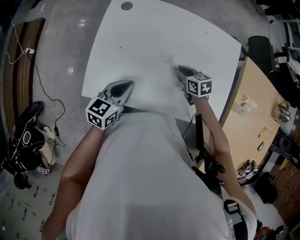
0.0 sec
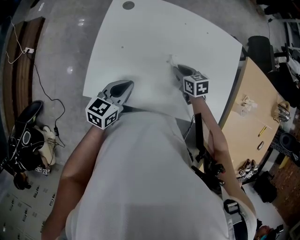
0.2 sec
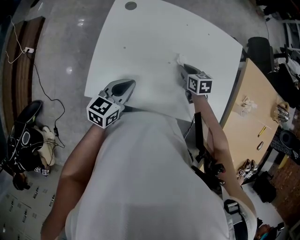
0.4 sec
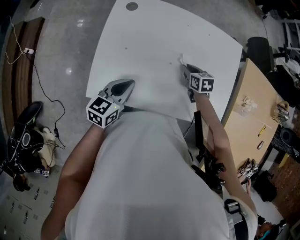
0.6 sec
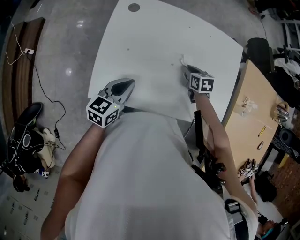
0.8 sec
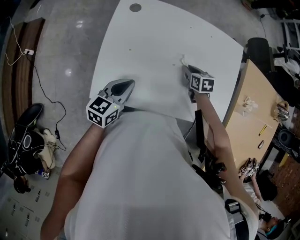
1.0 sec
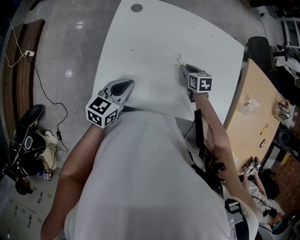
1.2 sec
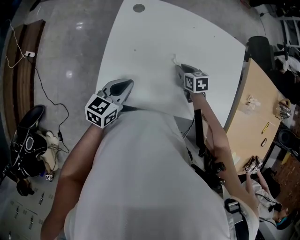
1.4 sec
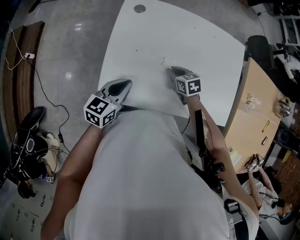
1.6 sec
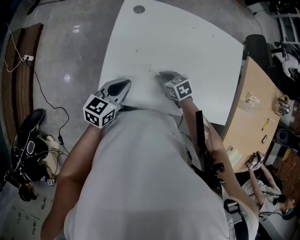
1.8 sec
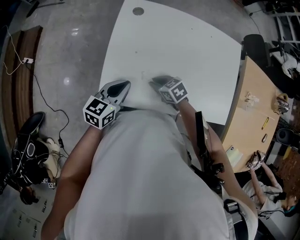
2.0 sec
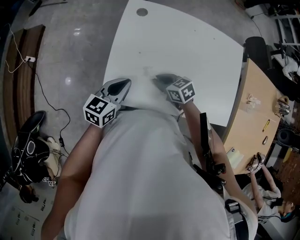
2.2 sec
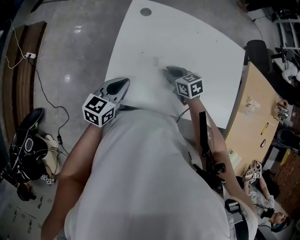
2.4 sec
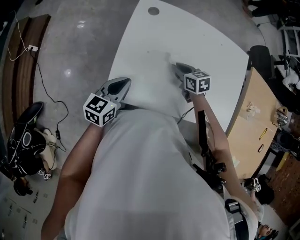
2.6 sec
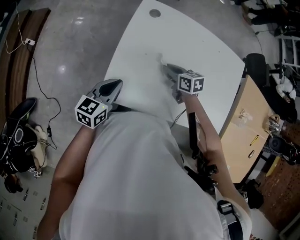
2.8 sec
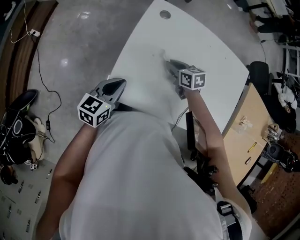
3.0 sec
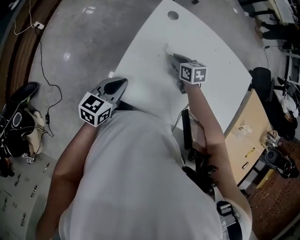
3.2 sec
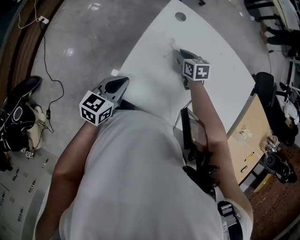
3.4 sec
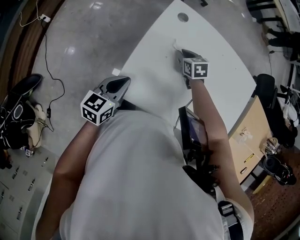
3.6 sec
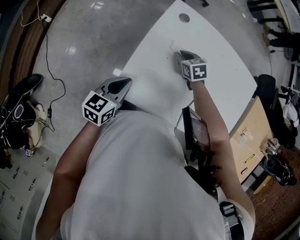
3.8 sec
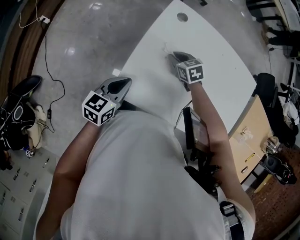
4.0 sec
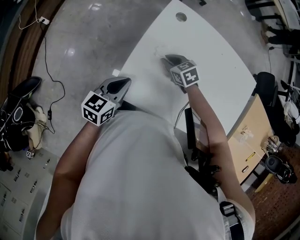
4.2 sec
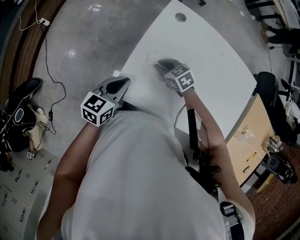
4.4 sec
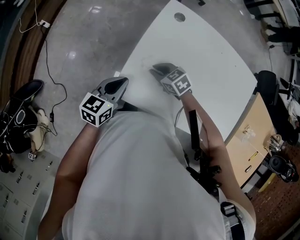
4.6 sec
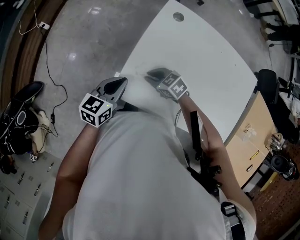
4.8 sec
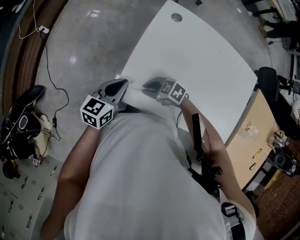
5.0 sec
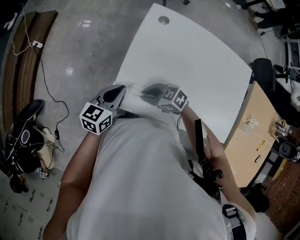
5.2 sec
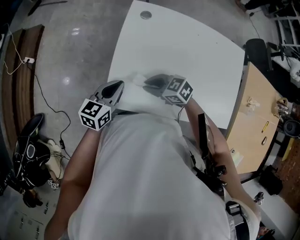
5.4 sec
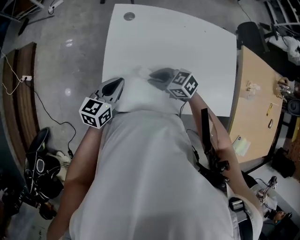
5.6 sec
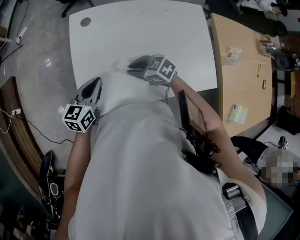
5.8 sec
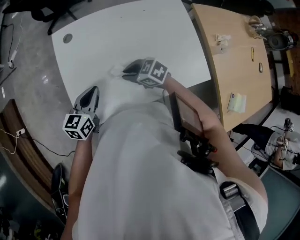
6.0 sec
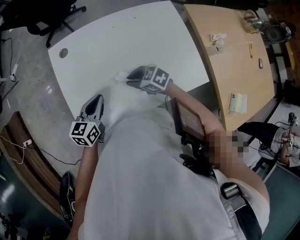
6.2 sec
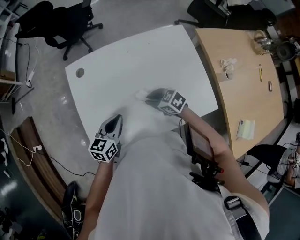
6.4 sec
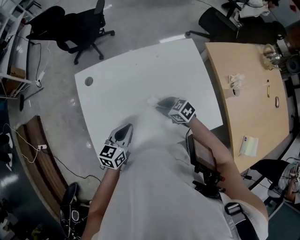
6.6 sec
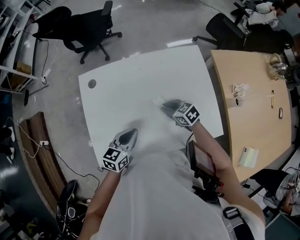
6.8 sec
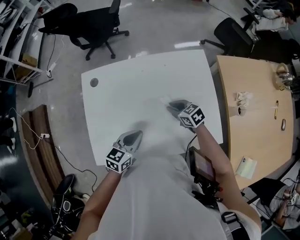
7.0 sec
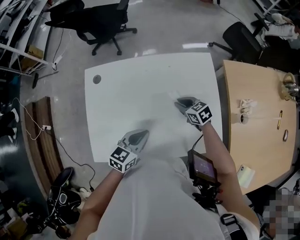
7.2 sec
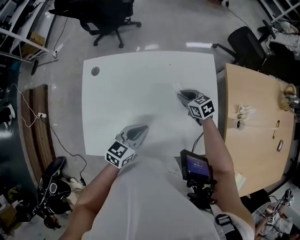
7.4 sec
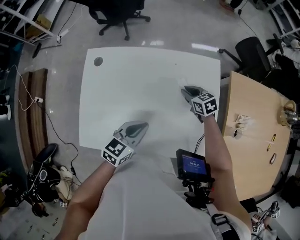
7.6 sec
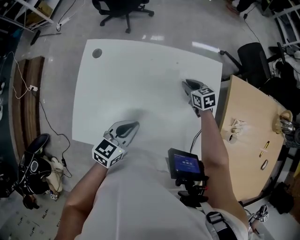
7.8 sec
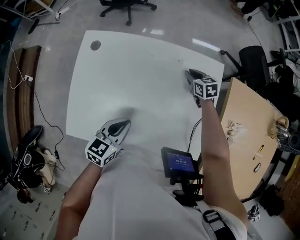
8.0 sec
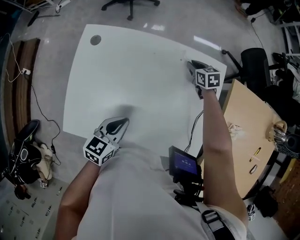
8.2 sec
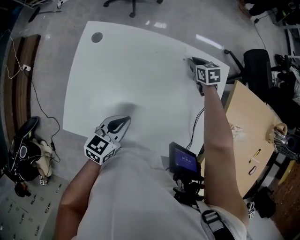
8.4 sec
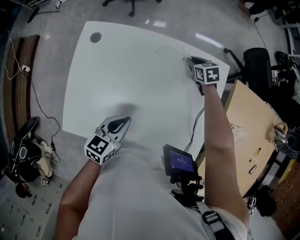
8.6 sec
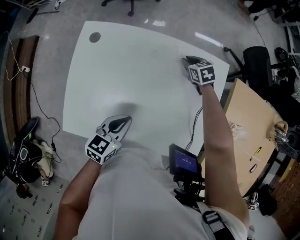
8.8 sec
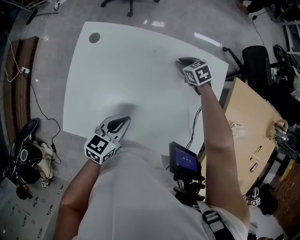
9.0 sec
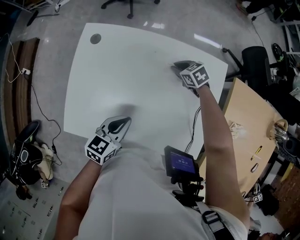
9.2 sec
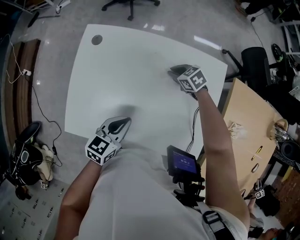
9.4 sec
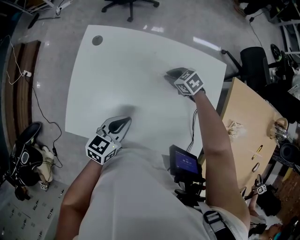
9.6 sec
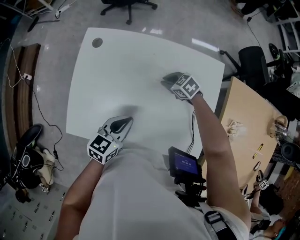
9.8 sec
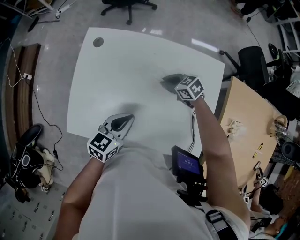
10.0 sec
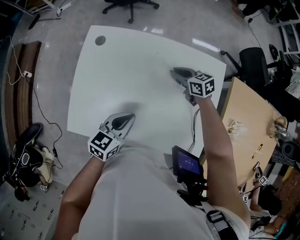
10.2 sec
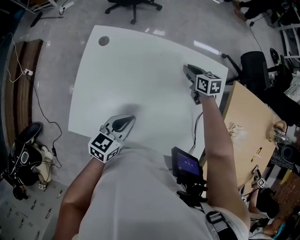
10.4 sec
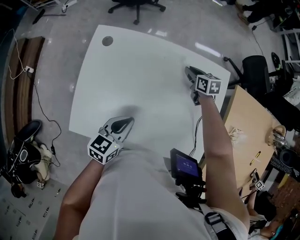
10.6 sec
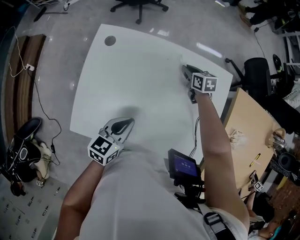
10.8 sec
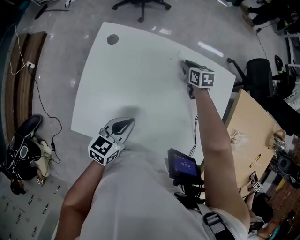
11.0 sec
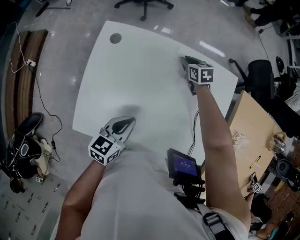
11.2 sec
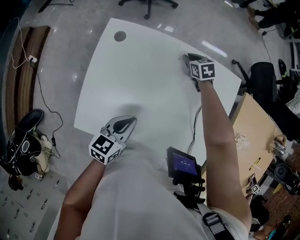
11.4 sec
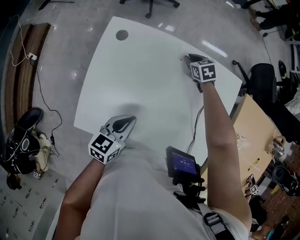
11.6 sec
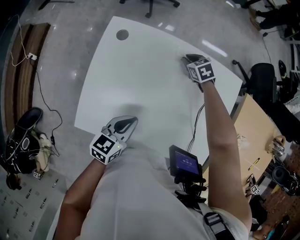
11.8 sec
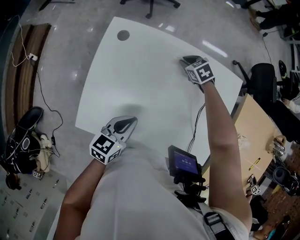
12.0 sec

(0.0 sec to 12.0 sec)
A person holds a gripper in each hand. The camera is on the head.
0.0 sec - 1.6 sec: Both grippers move to the left, about 10 cm.
1.6 sec - 3.0 sec: The right gripper goes about 10 cm to the left and forward. Meanwhile the left gripper moves to the left, roughly 10 cm.
3.0 sec - 4.4 sec: The right gripper shifts roughly 10 cm to the left, and turns by roughly 30 degrees.
4.4 sec - 6.0 sec: The left gripper changes place by roughly 15 cm, and swivels roughly 30 degrees; the right gripper ends up some 15 cm from where it was.
6.0 sec - 7.6 sec: The left gripper travels to the right by some 25 cm; the right gripper travels to the right and forward by some 35 cm.
7.6 sec - 9.0 sec: The left gripper heads to the left, covering about 5 cm. The right gripper travels forward and to the left by some 10 cm.
9.0 sec - 10.4 sec: The right gripper travels to the left and back again, roughly 10 cm each way, and turns by about 30 degrees.
10.4 sec - 12.0 sec: The right gripper travels to the left by roughly 10 cm, and swivels approximately 40 degrees. Meanwhile the left gripper travels to the left by roughly 5 cm.

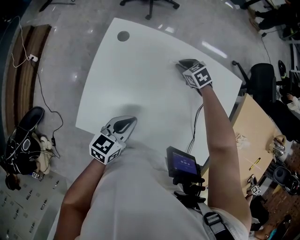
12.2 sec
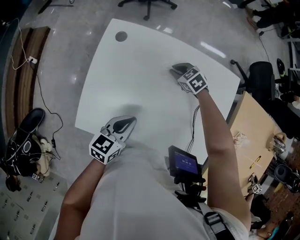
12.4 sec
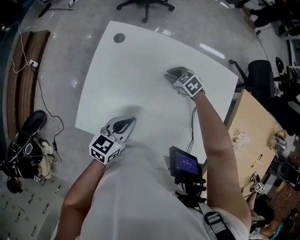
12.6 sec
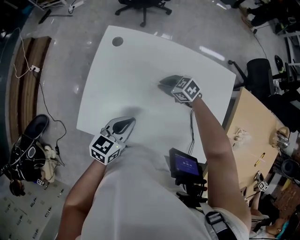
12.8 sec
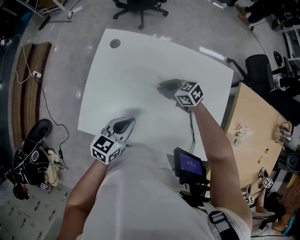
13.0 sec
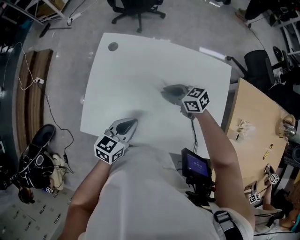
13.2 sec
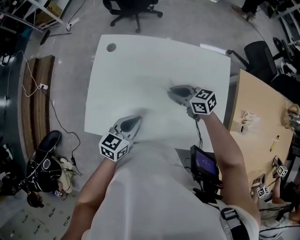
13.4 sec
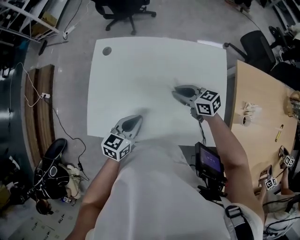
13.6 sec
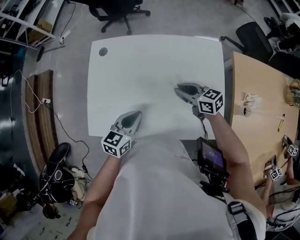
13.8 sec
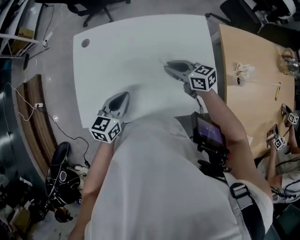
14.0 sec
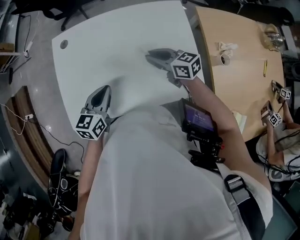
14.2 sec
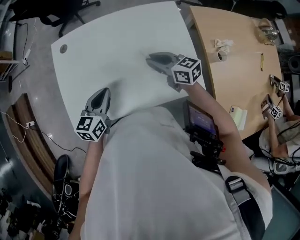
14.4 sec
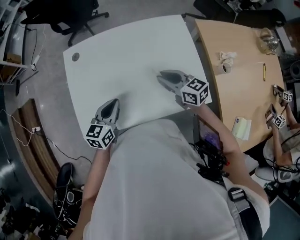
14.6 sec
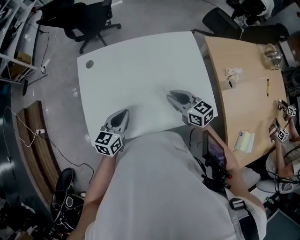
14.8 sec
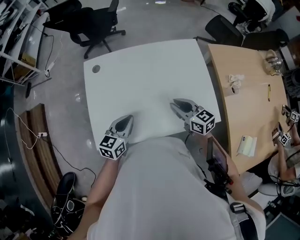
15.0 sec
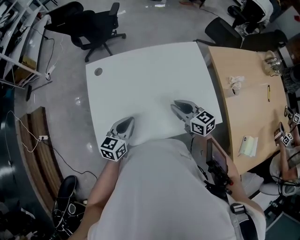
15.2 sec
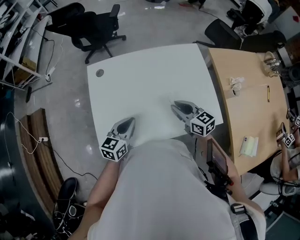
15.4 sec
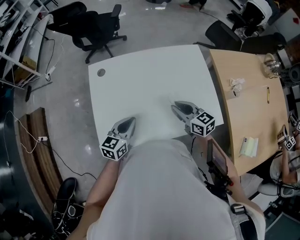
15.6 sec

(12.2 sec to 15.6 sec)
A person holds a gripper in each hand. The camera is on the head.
12.2 sec - 13.8 sec: The left gripper moves about 5 cm, while the right gripper shifts by some 25 cm, and tips its fingers upward by approximately 40 degrees.
13.8 sec - 15.6 sec: The left gripper is displaced to the left by roughly 10 cm. Meanwhile the right gripper travels backward by some 10 cm, and changes its angle by approximately 30 degrees.

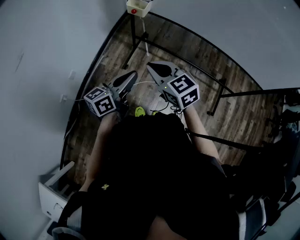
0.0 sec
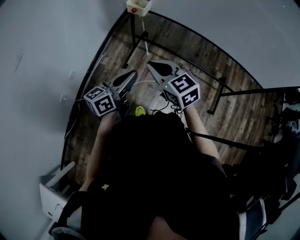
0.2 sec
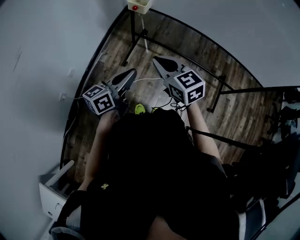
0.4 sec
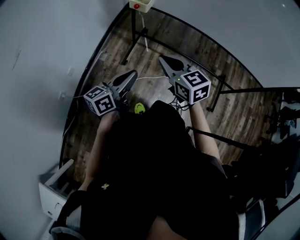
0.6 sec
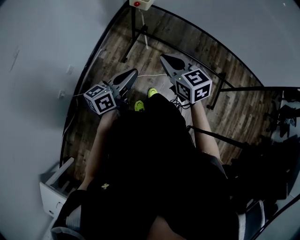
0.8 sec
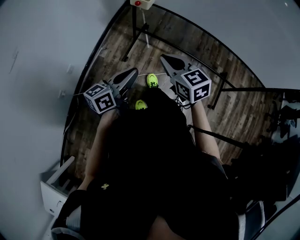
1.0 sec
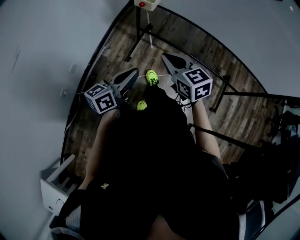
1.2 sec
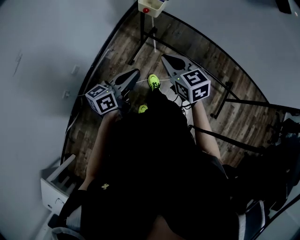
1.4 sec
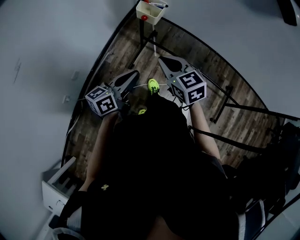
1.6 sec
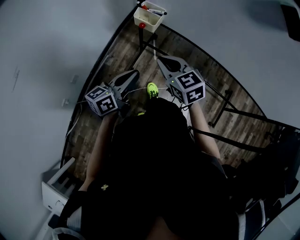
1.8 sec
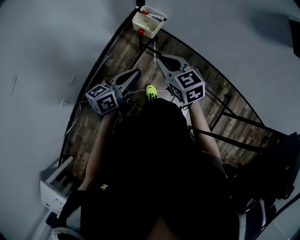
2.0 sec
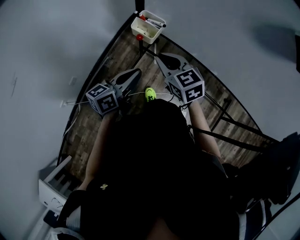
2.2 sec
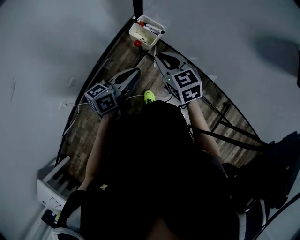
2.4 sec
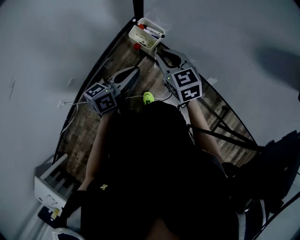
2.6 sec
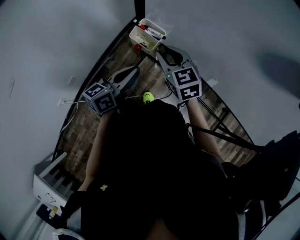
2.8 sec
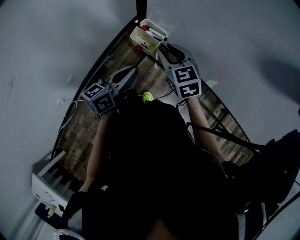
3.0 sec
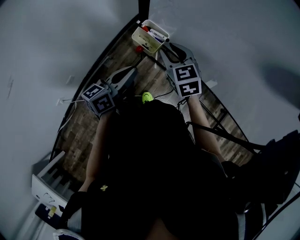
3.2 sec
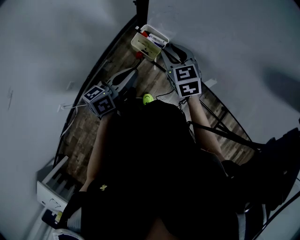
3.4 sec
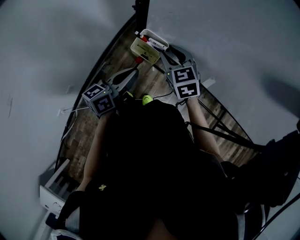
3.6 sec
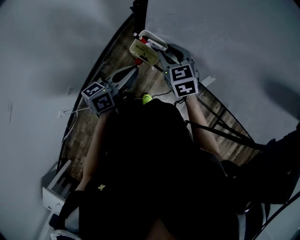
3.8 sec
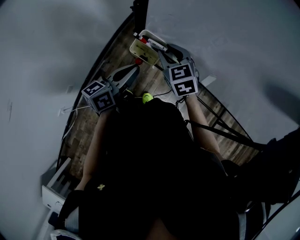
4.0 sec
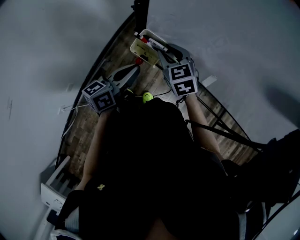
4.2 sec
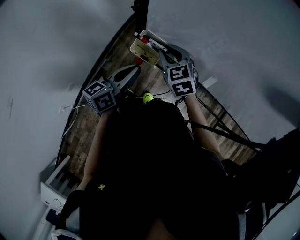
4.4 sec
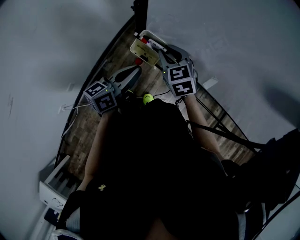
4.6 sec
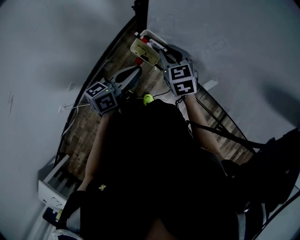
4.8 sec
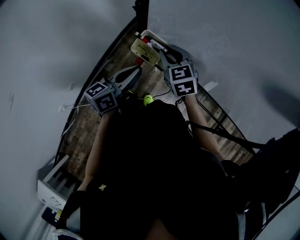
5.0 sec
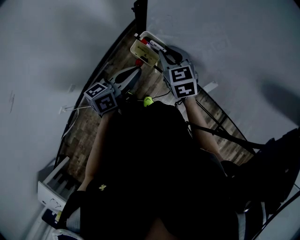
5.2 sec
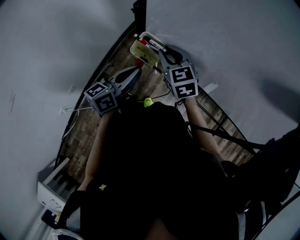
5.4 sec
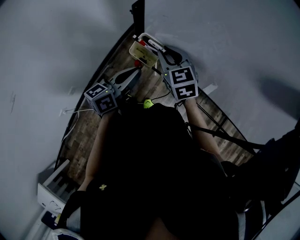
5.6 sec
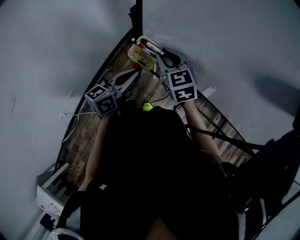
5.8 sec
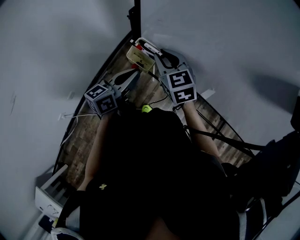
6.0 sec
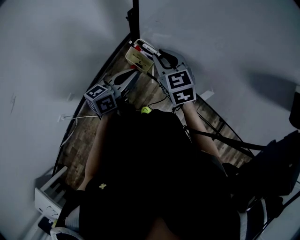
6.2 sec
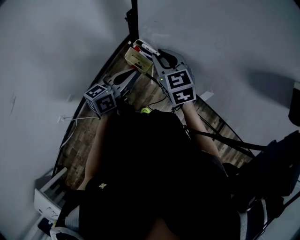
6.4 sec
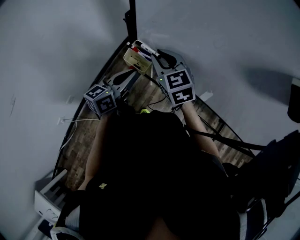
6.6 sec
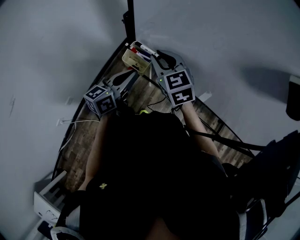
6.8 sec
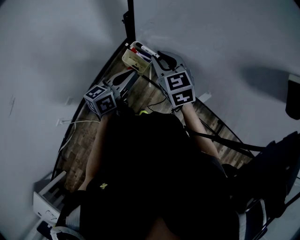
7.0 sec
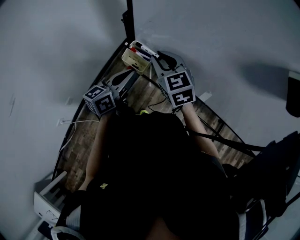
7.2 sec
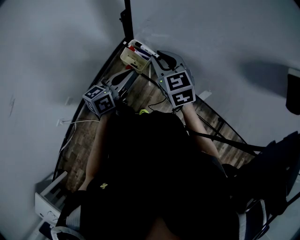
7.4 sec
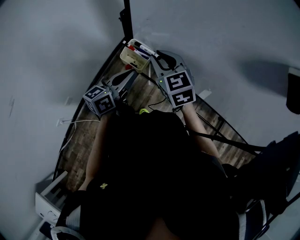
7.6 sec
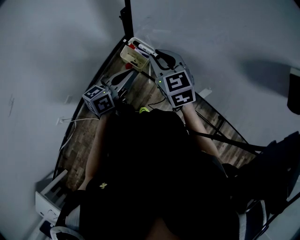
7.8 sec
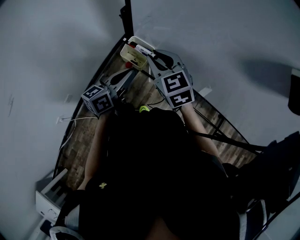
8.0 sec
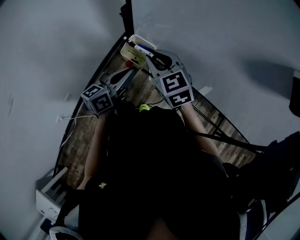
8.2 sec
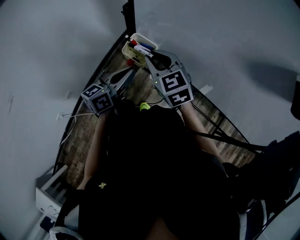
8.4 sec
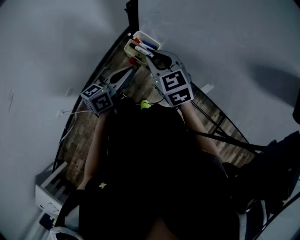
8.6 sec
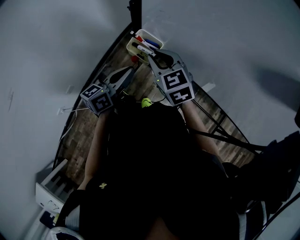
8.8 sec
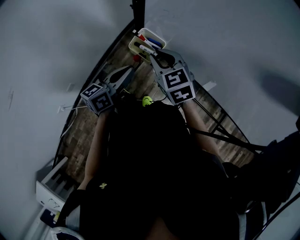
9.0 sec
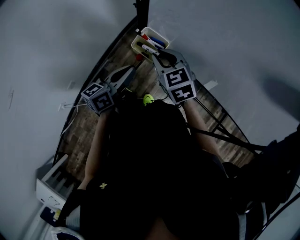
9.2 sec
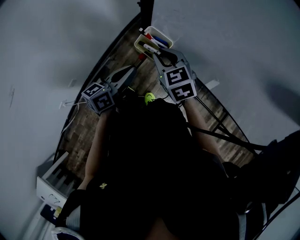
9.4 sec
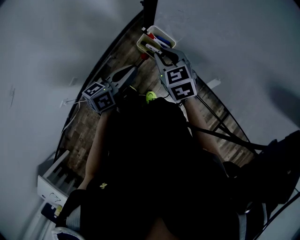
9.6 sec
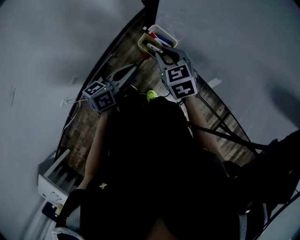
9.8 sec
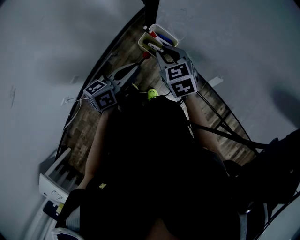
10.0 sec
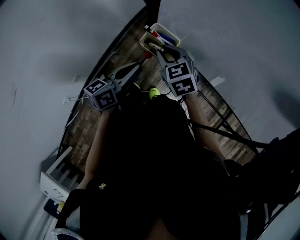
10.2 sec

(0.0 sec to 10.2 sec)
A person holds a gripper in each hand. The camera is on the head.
0.0 sec - 1.4 sec: Both grippers move forward, roughly 10 cm.
1.4 sec - 3.0 sec: The two grippers go about 25 cm forward. The right gripper opens up.
3.0 sec - 4.4 sec: The grippers both shift forward by some 5 cm.
4.4 sec - 5.8 sec: The right gripper shifts some 5 cm to the left.
5.8 sec - 7.2 sec: The grippers stay close to where they were, moving slightly.
7.2 sec - 8.8 sec: The right gripper ends up about 5 cm from where it was.
8.8 sec - 10.2 sec: The right gripper travels downward by approximately 5 cm.
